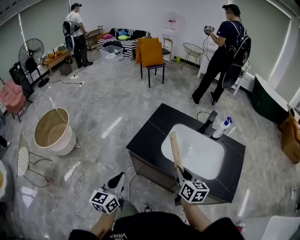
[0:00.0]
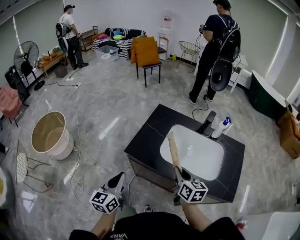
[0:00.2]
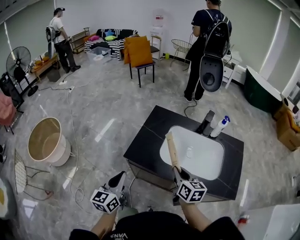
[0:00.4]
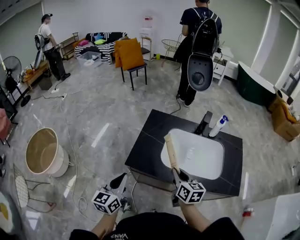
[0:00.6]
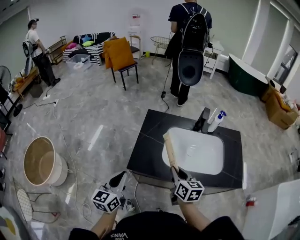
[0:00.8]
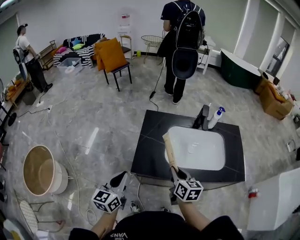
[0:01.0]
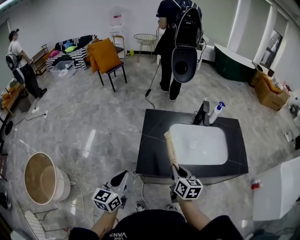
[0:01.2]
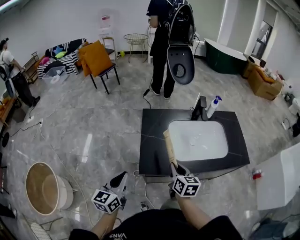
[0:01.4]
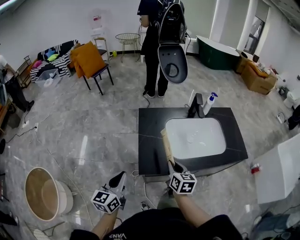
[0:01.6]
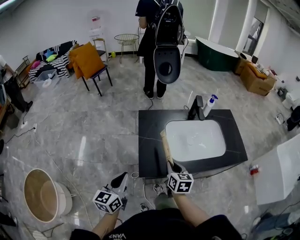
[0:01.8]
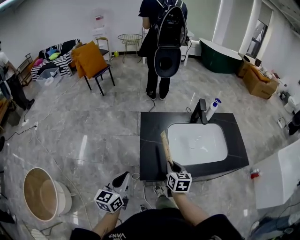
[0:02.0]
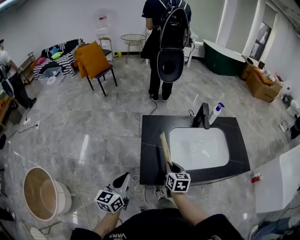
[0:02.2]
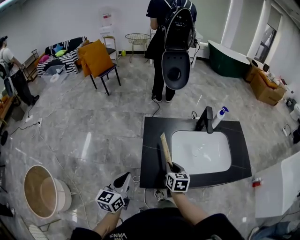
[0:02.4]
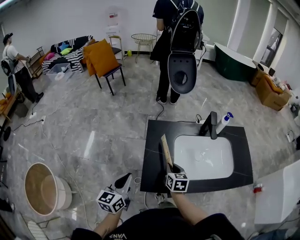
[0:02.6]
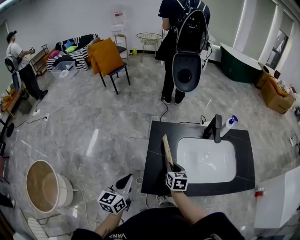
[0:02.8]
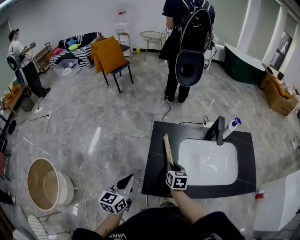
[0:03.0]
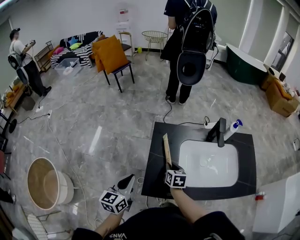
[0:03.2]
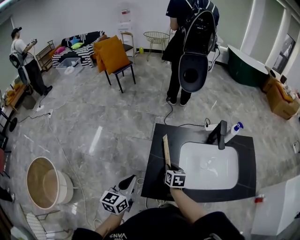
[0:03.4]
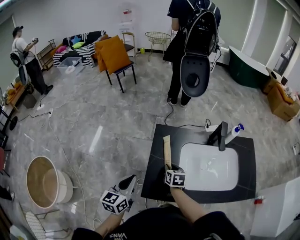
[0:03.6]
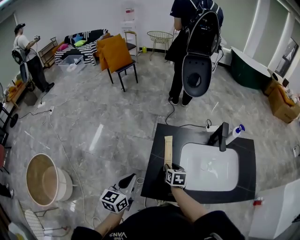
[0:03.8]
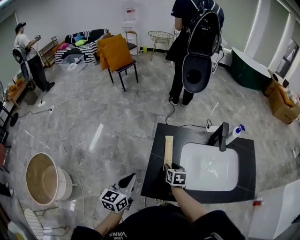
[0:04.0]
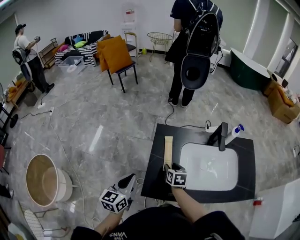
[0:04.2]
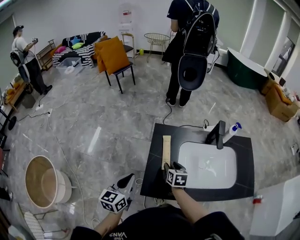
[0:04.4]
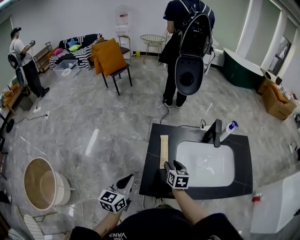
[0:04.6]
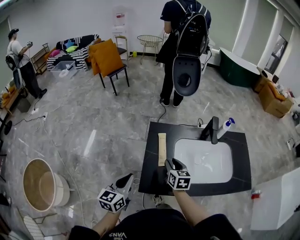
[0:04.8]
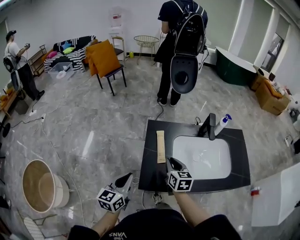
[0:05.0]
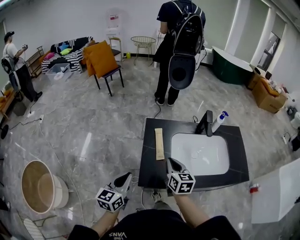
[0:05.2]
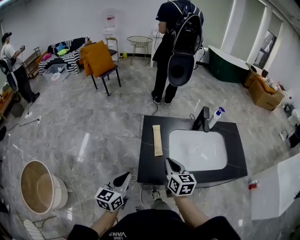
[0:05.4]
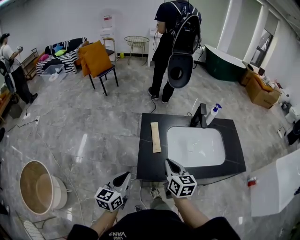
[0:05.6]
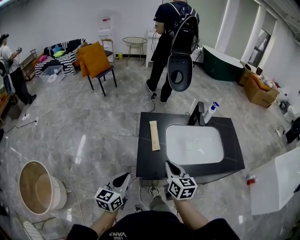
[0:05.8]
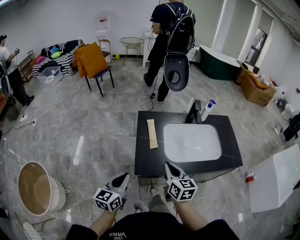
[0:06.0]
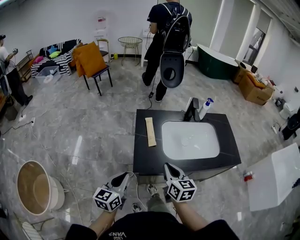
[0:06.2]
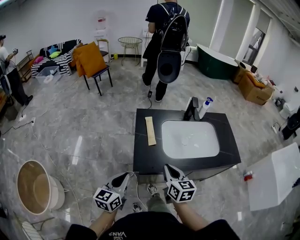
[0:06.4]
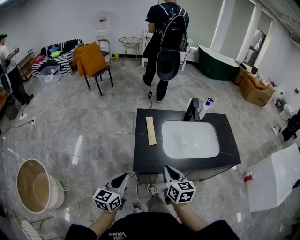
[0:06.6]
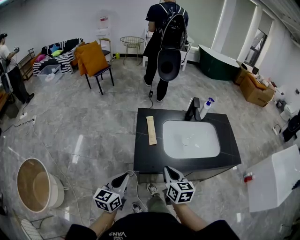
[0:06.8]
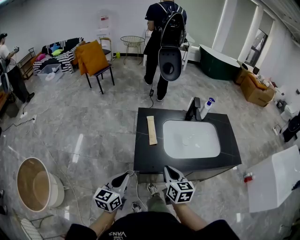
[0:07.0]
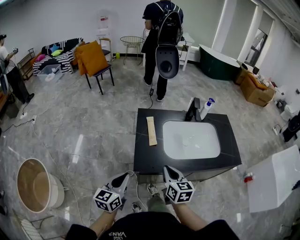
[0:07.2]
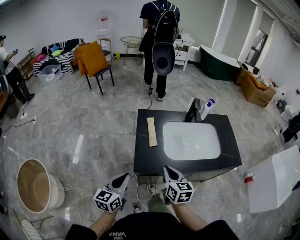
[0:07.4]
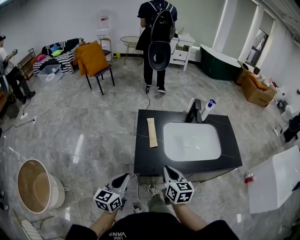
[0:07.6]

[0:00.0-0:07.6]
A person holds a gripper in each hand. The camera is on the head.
0:00.0 to 0:01.6: The left gripper moves roughly 25 cm, and rotates roughly 30 degrees, while the right gripper ends up approximately 20 cm from where it was, and rotates some 30 degrees.
0:01.6 to 0:03.0: The left gripper is displaced forward by some 10 cm. The right gripper heads forward and downward, covering roughly 15 cm.
0:03.0 to 0:04.6: The right gripper opens up.
0:04.6 to 0:06.0: The left gripper travels backward by roughly 10 cm; the right gripper goes some 20 cm backward and upward, and closes its fingers.
0:06.0 to 0:07.6: The grippers stay close to where they were, moving slightly.

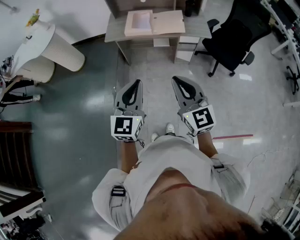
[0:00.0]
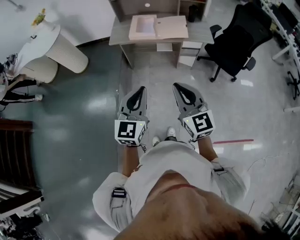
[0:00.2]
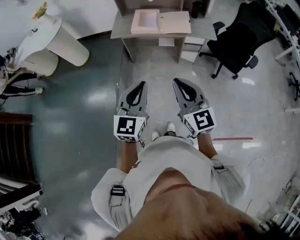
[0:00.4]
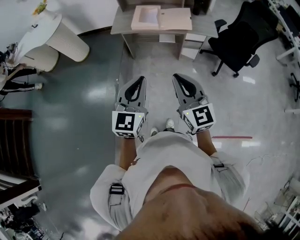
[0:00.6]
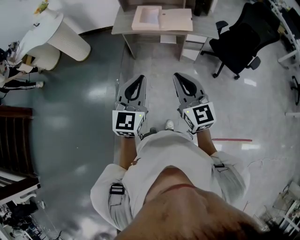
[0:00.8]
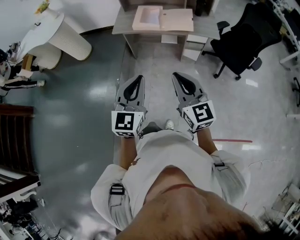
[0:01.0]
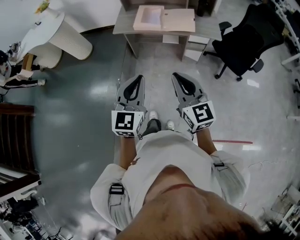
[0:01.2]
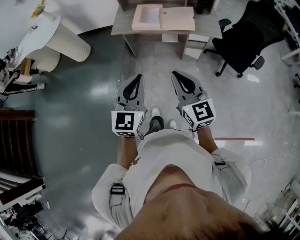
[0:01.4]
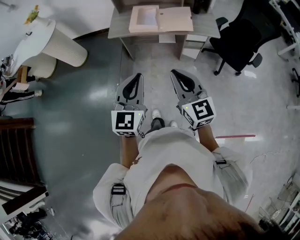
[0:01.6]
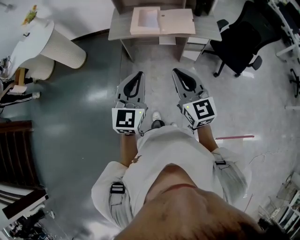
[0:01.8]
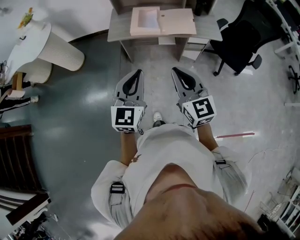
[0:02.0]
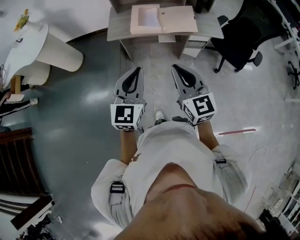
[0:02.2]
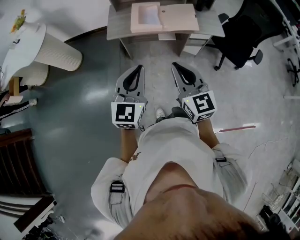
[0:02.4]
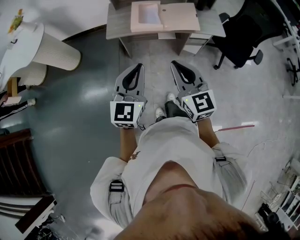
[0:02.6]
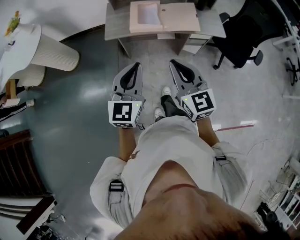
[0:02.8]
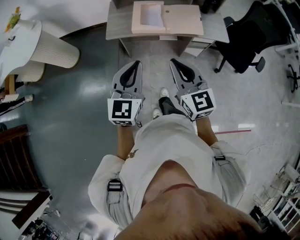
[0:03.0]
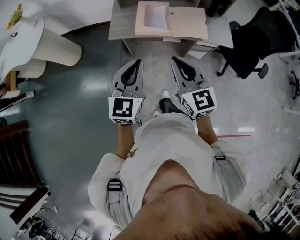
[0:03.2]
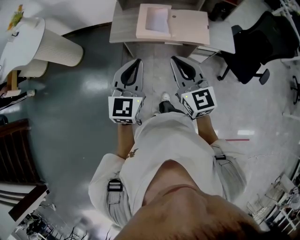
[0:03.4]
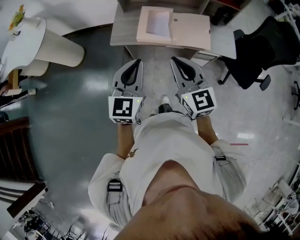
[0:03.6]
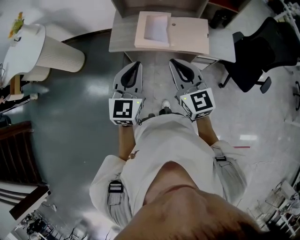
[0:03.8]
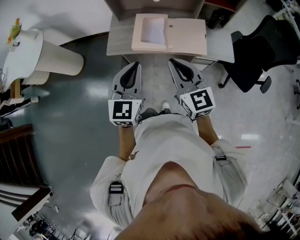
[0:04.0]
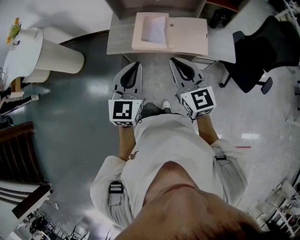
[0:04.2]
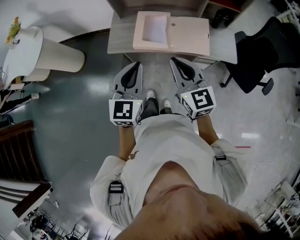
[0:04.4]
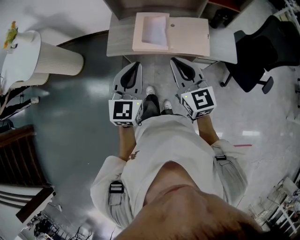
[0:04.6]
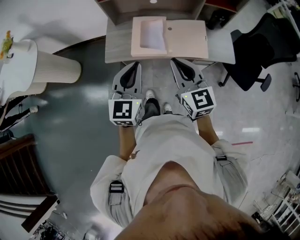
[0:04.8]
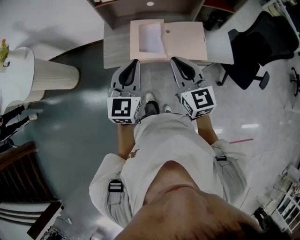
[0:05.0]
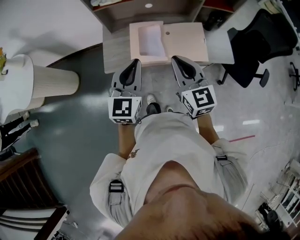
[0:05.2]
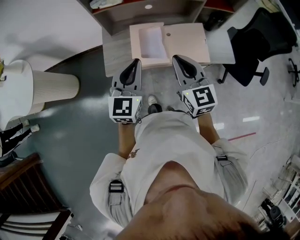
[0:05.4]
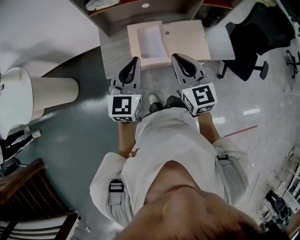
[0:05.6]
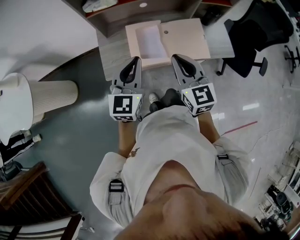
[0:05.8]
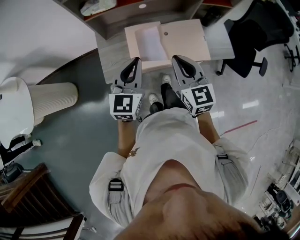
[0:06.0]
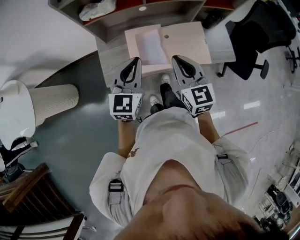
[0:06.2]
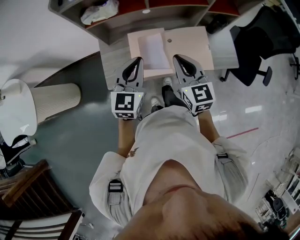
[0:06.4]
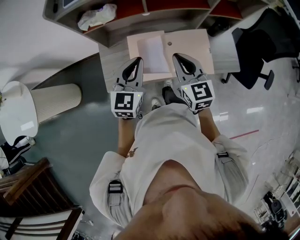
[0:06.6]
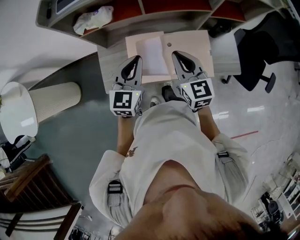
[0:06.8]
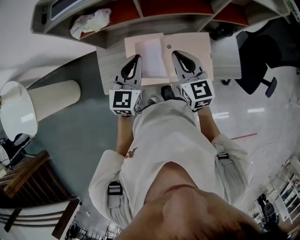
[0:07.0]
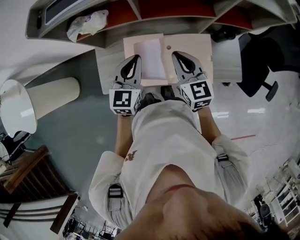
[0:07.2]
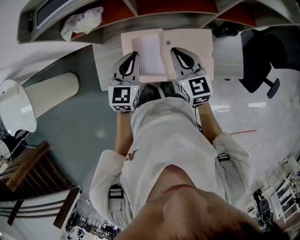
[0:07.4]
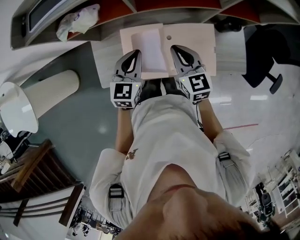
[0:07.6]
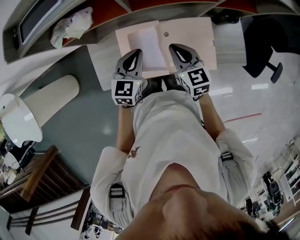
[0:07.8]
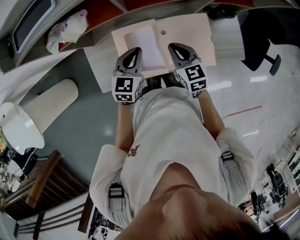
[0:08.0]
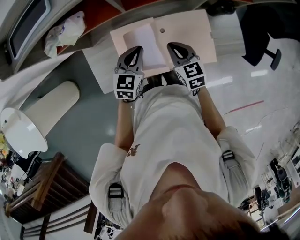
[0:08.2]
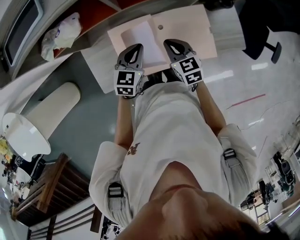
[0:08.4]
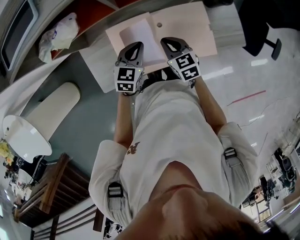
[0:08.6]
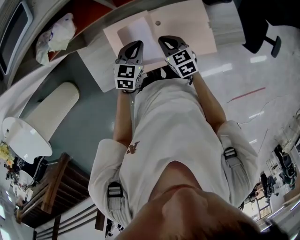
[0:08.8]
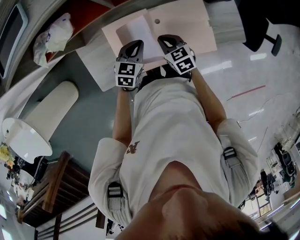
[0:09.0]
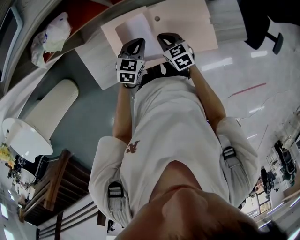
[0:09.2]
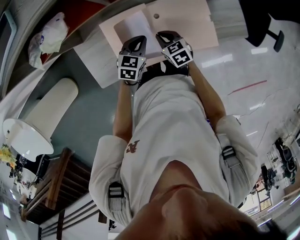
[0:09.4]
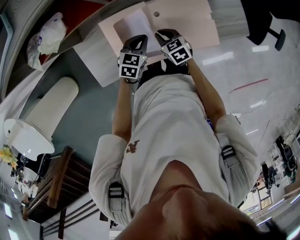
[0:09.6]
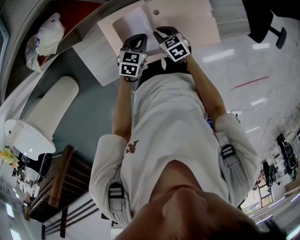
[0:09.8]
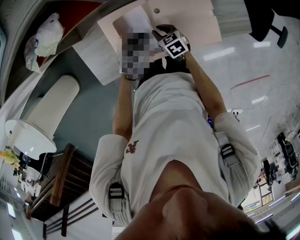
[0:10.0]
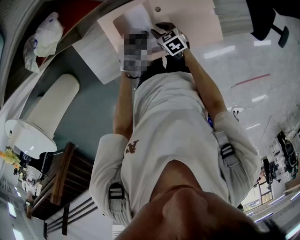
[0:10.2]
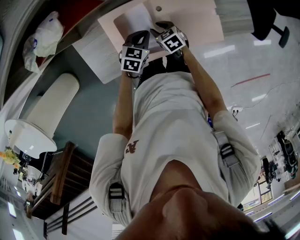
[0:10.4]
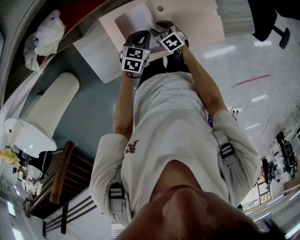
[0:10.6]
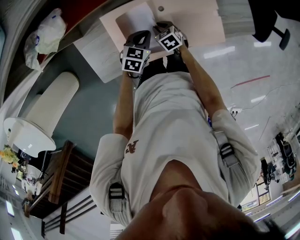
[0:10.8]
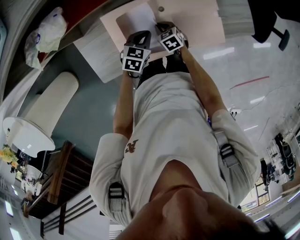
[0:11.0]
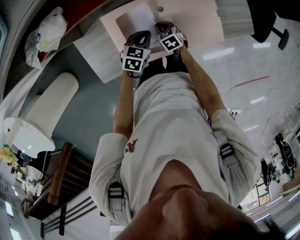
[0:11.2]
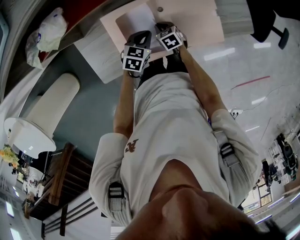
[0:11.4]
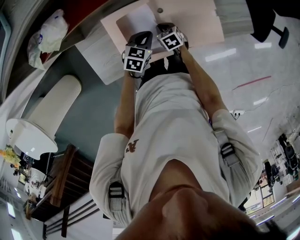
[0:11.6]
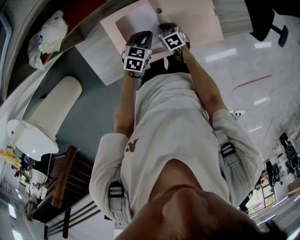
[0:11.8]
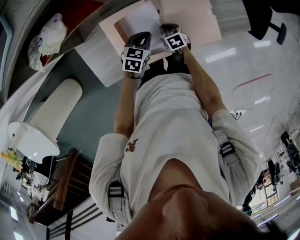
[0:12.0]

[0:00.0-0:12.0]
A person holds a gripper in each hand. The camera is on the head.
0:00.0 to 0:01.6: The two grippers go about 5 cm forward.
0:01.6 to 0:03.0: The grippers both shift forward and to the left by about 20 cm.
0:03.0 to 0:04.4: The left gripper travels forward and to the right by about 15 cm. The right gripper is displaced forward by roughly 15 cm.
0:04.4 to 0:06.0: Both grippers travel together forward, about 20 cm. The right gripper changes its angle by some 20 degrees.
0:06.0 to 0:07.6: The grippers both shift forward and downward by roughly 25 cm.
0:07.6 to 0:09.0: Both grippers travel together downward, roughly 15 cm. The left gripper turns by about 20 degrees, while the right gripper turns by about 20 degrees.
0:09.0 to 0:10.4: The two grippers go roughly 10 cm downward. The right gripper opens.
0:10.4 to 0:12.0: The right gripper ends up approximately 5 cm from where it was, and closes.

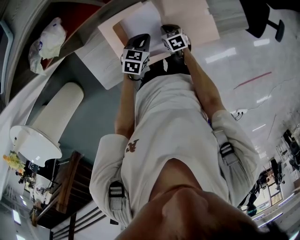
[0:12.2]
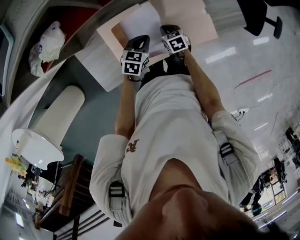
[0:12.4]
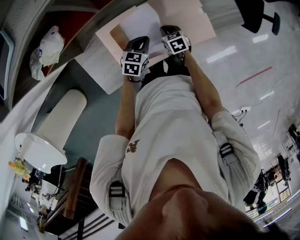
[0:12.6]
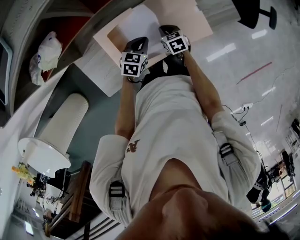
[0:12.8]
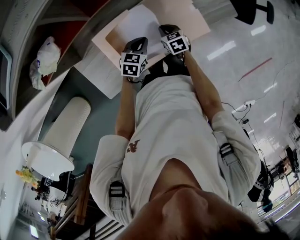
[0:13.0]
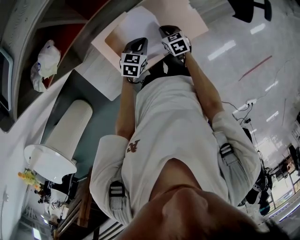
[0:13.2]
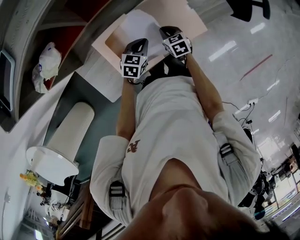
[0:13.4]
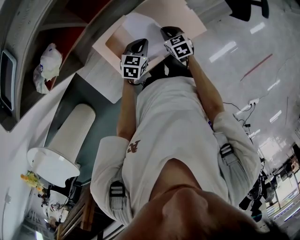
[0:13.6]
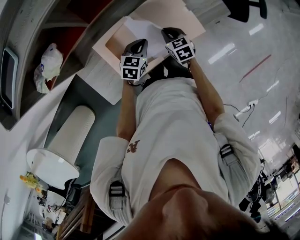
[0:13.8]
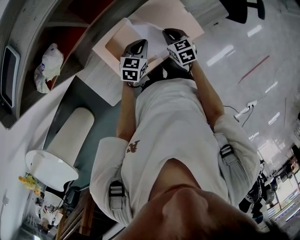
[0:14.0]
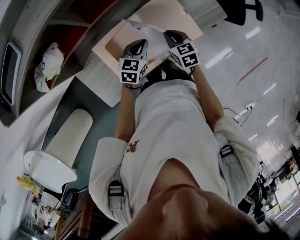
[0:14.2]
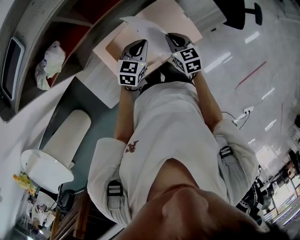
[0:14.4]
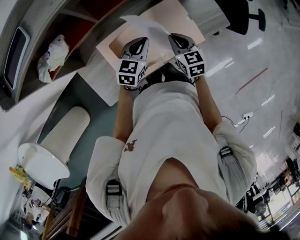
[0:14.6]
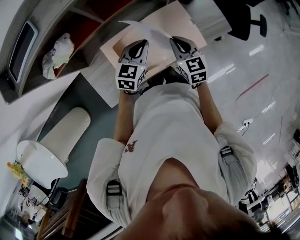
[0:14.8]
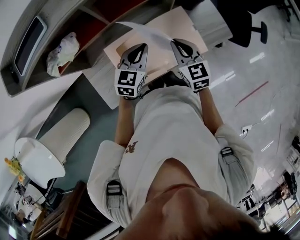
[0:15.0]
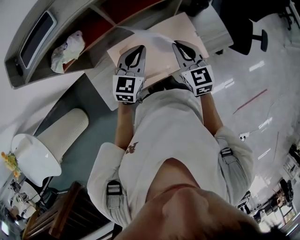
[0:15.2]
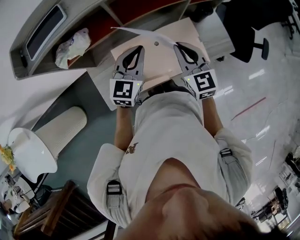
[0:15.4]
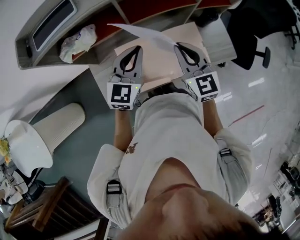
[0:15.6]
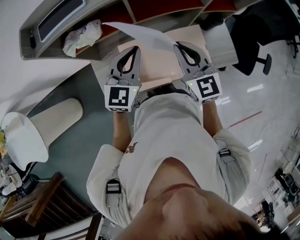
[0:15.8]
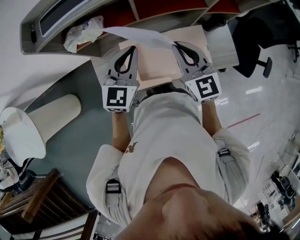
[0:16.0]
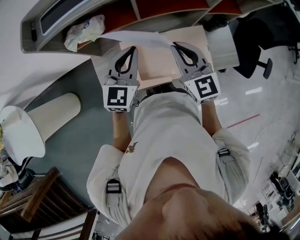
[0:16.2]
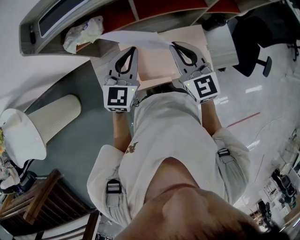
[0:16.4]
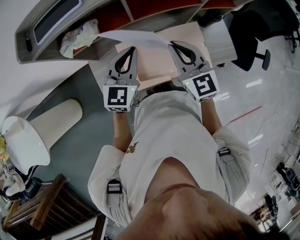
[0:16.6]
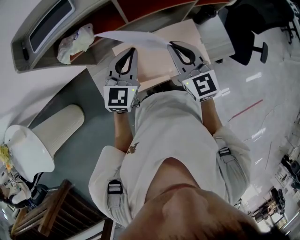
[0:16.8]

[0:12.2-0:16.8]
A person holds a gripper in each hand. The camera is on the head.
0:12.2 to 0:13.8: The left gripper changes place by some 5 cm; the right gripper heads upward and to the right, covering about 15 cm.
0:13.8 to 0:15.2: Both grippers travel together upward, some 20 cm. The right gripper rotates approximately 30 degrees. The left gripper rotates some 30 degrees.
0:15.2 to 0:16.8: The left gripper shifts about 10 cm to the left and upward. Meanwhile the right gripper heads upward and to the left, covering about 10 cm.
